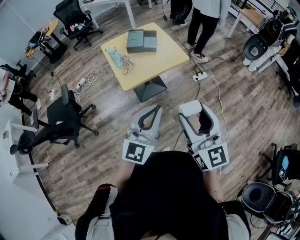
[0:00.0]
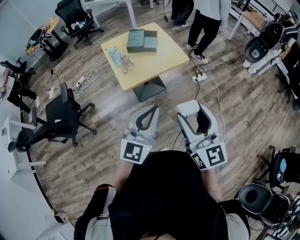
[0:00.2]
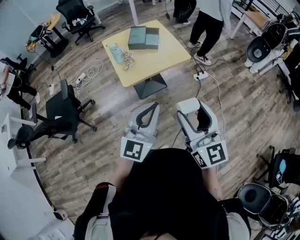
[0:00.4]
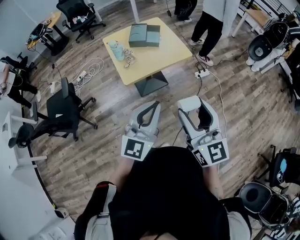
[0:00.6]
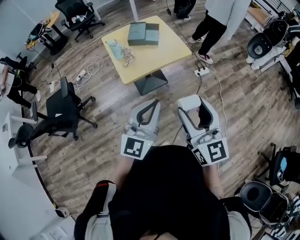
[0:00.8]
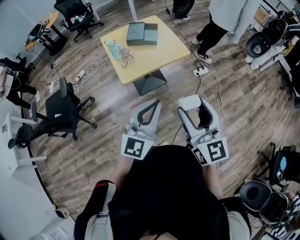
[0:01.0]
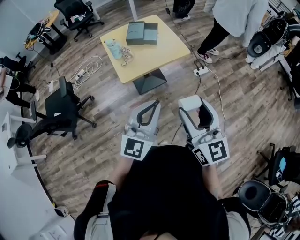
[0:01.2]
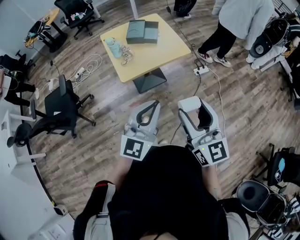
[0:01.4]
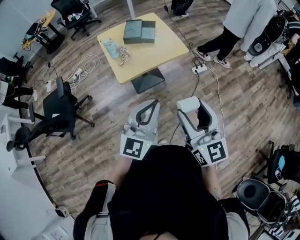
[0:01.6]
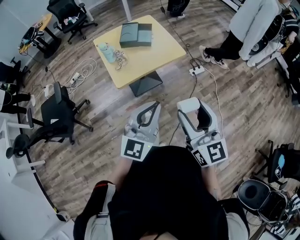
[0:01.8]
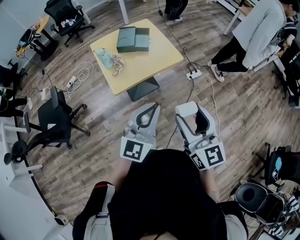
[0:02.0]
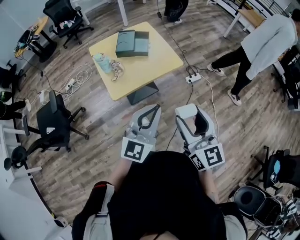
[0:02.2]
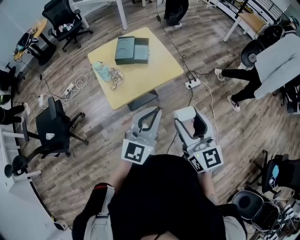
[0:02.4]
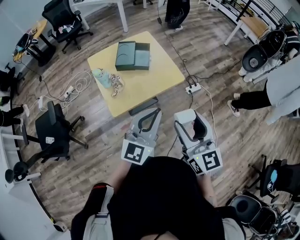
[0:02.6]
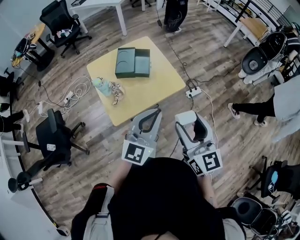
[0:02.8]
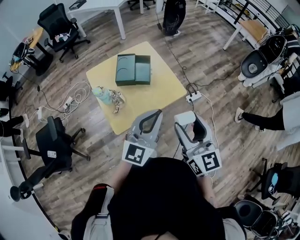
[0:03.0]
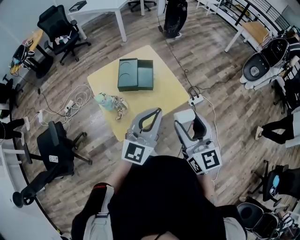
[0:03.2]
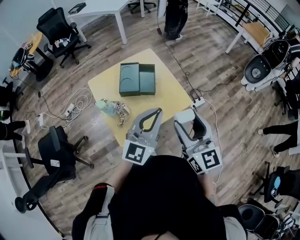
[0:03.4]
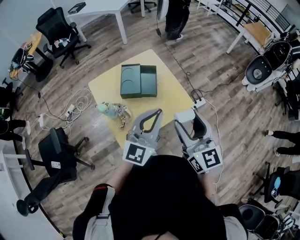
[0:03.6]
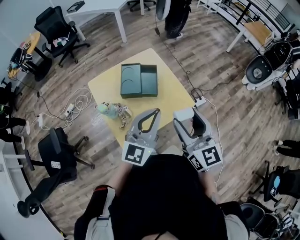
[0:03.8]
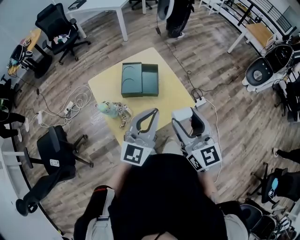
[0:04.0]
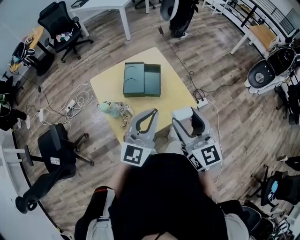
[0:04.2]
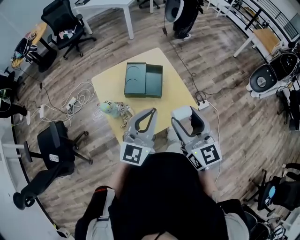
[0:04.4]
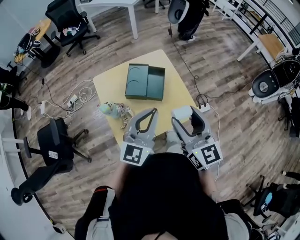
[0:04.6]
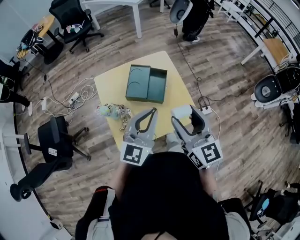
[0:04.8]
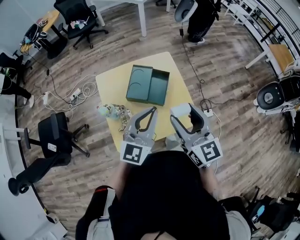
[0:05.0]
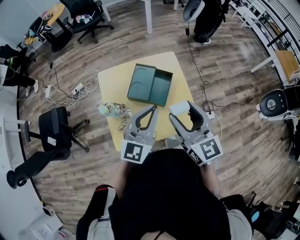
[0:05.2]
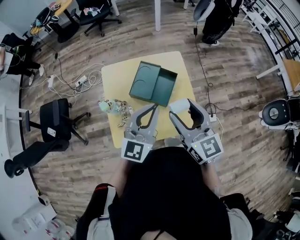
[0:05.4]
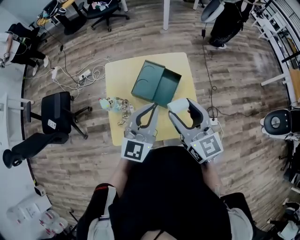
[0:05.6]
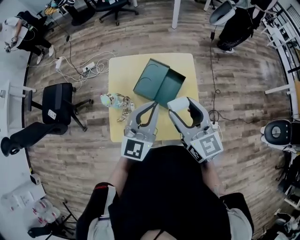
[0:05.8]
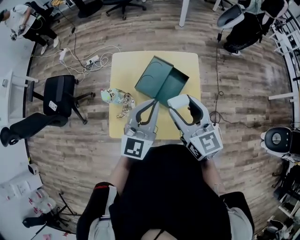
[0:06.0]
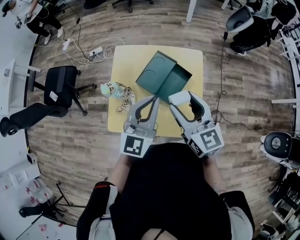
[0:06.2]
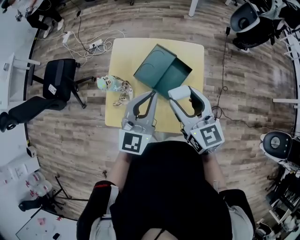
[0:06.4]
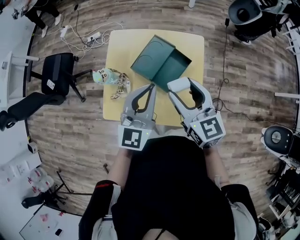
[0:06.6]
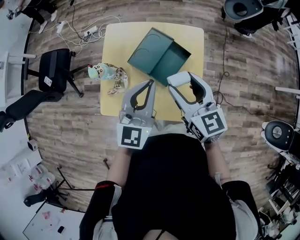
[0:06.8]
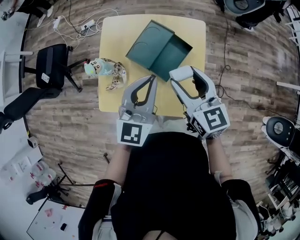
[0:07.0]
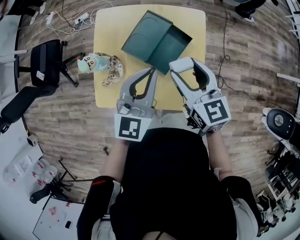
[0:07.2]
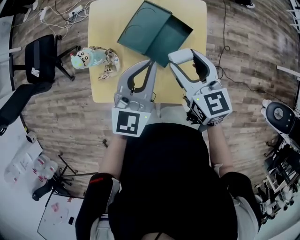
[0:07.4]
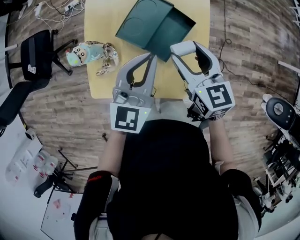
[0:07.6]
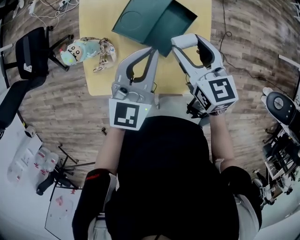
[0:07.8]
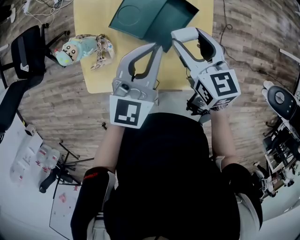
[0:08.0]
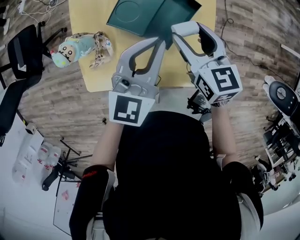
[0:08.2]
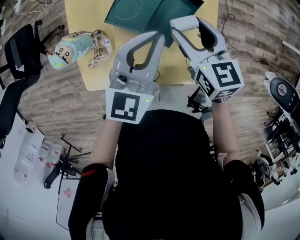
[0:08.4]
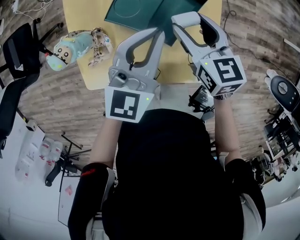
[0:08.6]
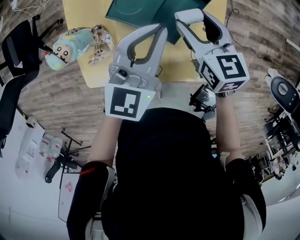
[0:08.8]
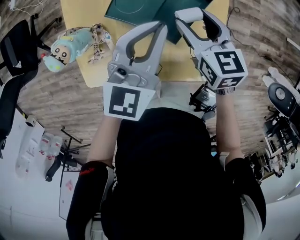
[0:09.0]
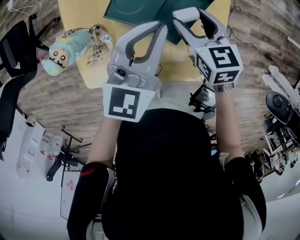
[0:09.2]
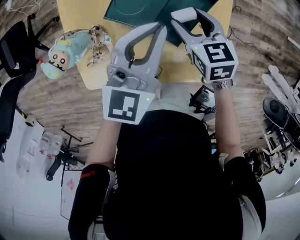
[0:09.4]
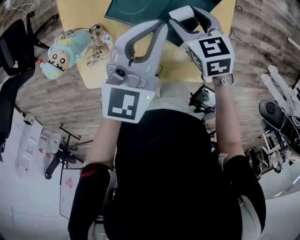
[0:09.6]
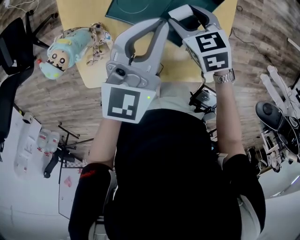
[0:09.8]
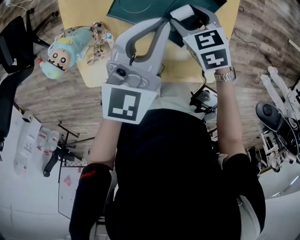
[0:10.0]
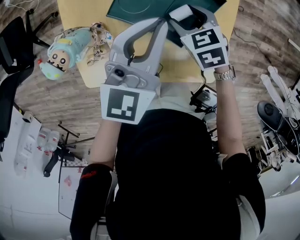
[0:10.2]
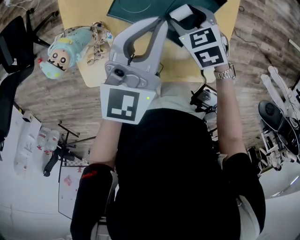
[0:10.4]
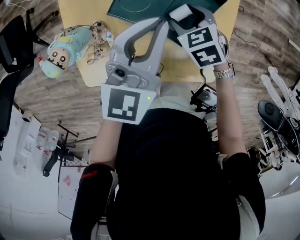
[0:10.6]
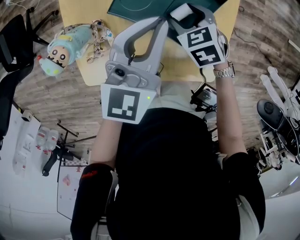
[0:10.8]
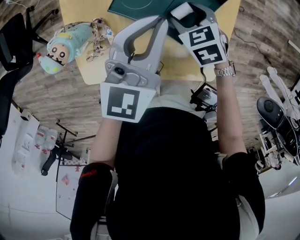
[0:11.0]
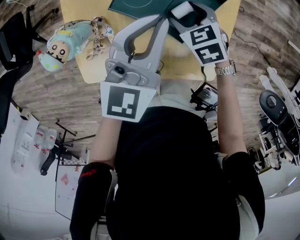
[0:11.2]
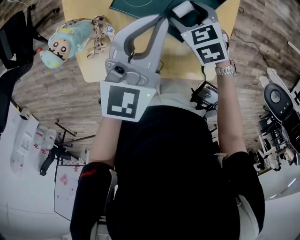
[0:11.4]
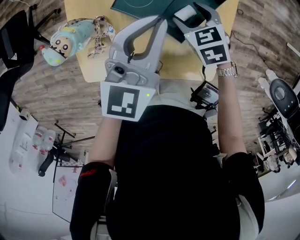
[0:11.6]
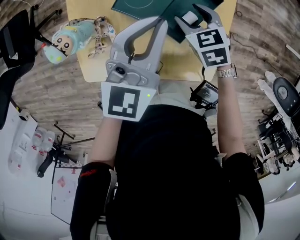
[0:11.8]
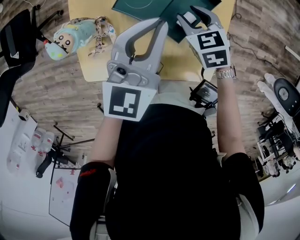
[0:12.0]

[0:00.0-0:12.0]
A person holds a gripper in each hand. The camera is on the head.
0:00.0 to 0:01.6: There are only small adjustments of the grippers.
0:01.6 to 0:03.0: Both grippers travel together forward, roughly 30 cm.
0:03.0 to 0:04.4: The grippers both shift forward and to the left by approximately 15 cm.
0:04.4 to 0:06.0: The right gripper shifts by approximately 20 cm, and swivels approximately 30 degrees. Meanwhile the left gripper moves some 15 cm, and changes its angle by roughly 30 degrees.
0:06.0 to 0:07.6: The right gripper goes roughly 15 cm downward and forward. The left gripper moves downward and forward, about 10 cm.
0:07.6 to 0:09.0: The grippers both shift downward and forward by some 10 cm.
0:09.0 to 0:10.4: The right gripper shifts some 10 cm downward, and changes its angle by about 30 degrees.
0:10.4 to 0:12.0: There are only small adjustments of the grippers.

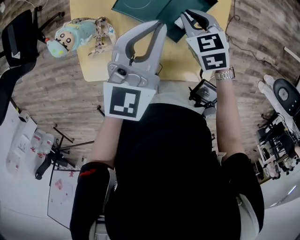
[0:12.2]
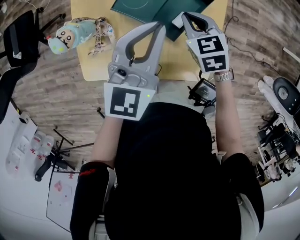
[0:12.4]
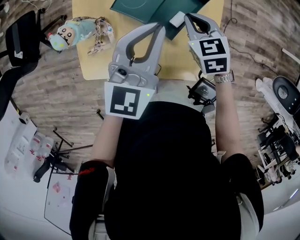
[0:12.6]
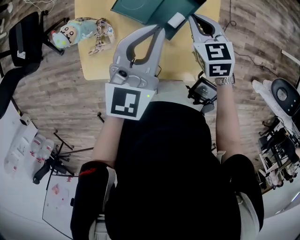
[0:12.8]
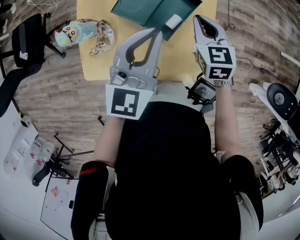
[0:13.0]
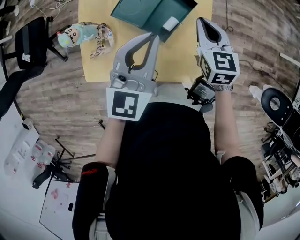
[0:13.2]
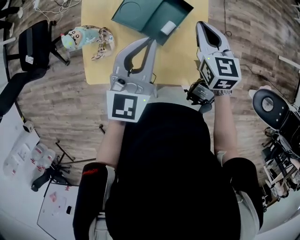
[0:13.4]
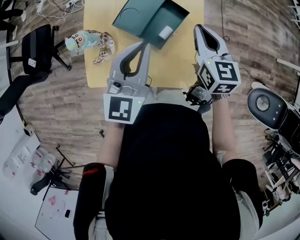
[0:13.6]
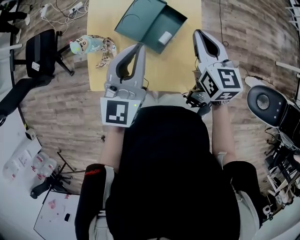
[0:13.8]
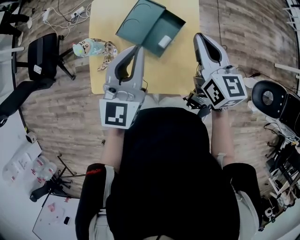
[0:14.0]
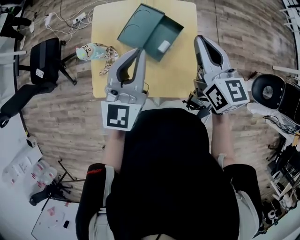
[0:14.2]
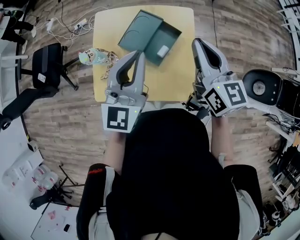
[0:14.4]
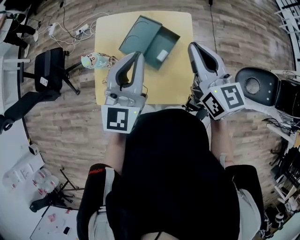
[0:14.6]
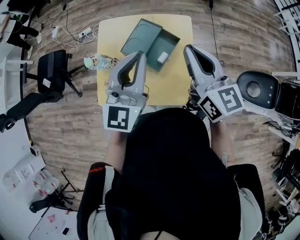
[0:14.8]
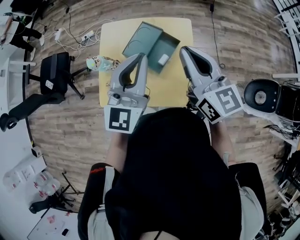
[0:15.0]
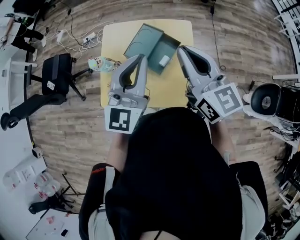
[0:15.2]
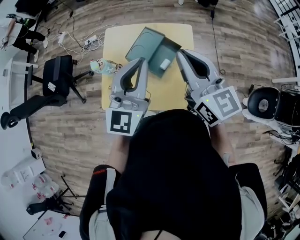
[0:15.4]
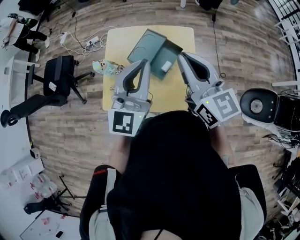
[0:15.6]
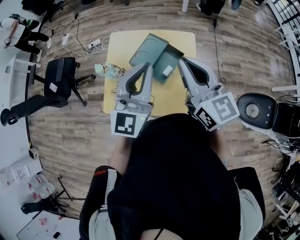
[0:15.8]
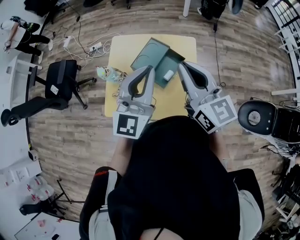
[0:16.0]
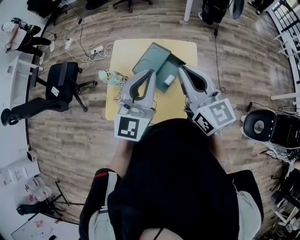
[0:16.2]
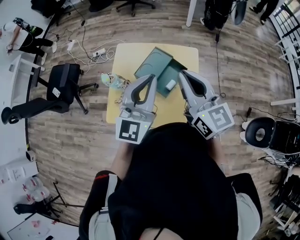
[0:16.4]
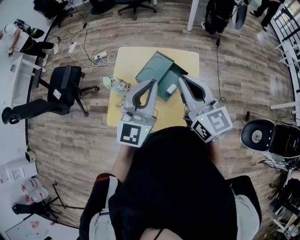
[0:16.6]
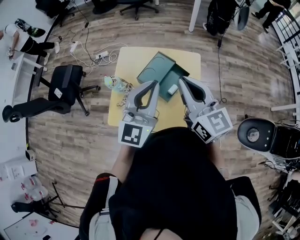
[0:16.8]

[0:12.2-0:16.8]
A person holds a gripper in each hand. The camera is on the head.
0:12.2 to 0:13.8: The right gripper travels upward and to the right by roughly 25 cm, and angles its fingers upward, by some 30 degrees. The left gripper travels upward and backward by approximately 15 cm.
0:13.8 to 0:15.2: The right gripper travels upward by some 15 cm, and rotates about 20 degrees, while the left gripper moves upward, roughly 10 cm.
0:15.2 to 0:16.8: The grippers make only small movements.

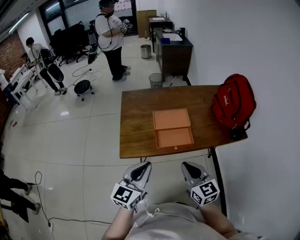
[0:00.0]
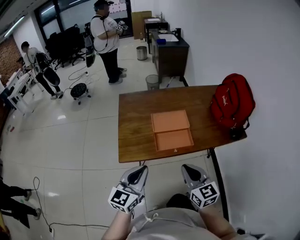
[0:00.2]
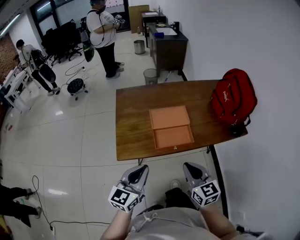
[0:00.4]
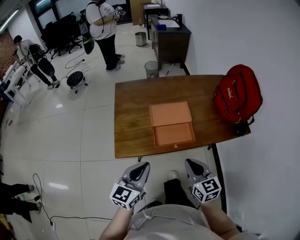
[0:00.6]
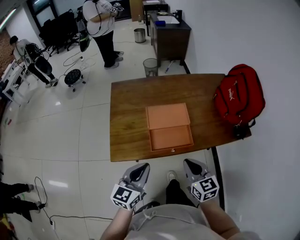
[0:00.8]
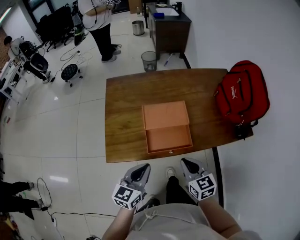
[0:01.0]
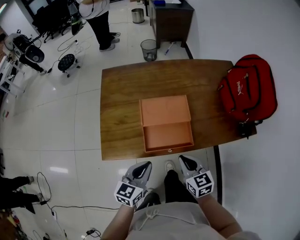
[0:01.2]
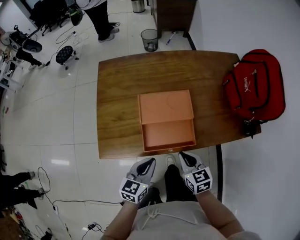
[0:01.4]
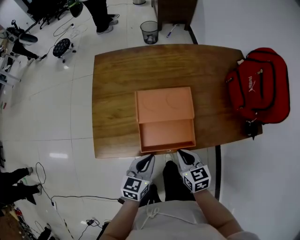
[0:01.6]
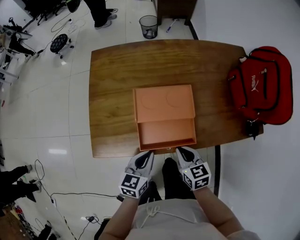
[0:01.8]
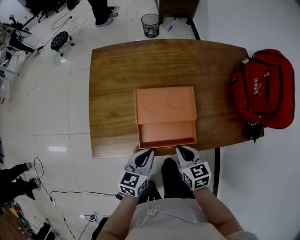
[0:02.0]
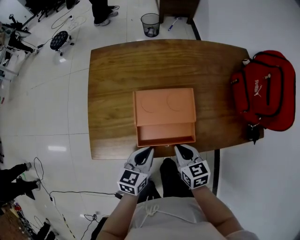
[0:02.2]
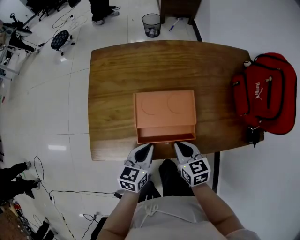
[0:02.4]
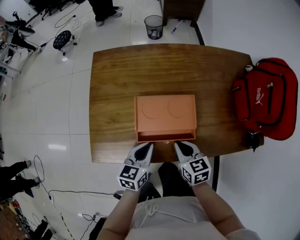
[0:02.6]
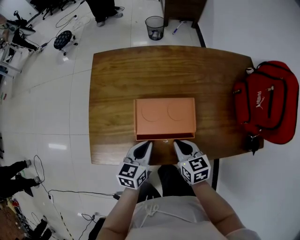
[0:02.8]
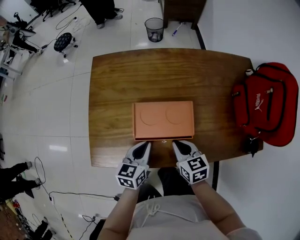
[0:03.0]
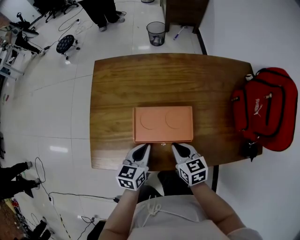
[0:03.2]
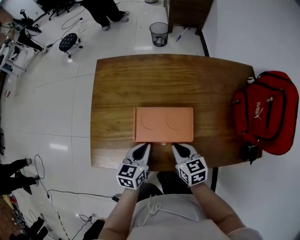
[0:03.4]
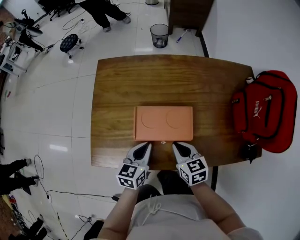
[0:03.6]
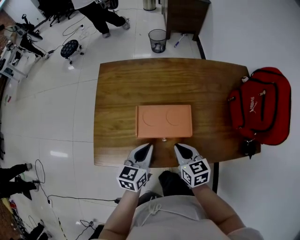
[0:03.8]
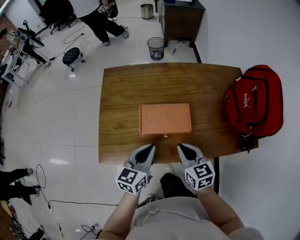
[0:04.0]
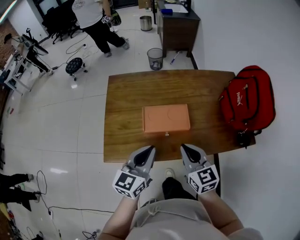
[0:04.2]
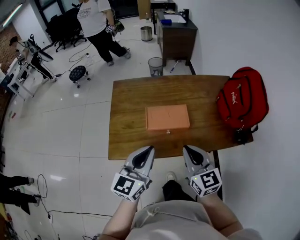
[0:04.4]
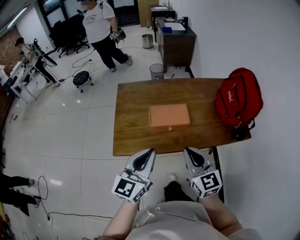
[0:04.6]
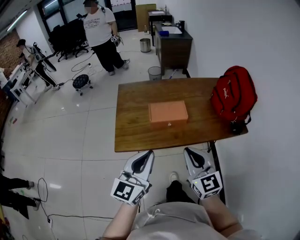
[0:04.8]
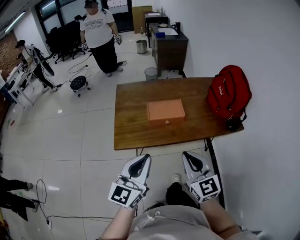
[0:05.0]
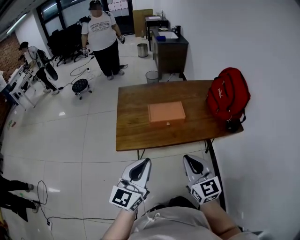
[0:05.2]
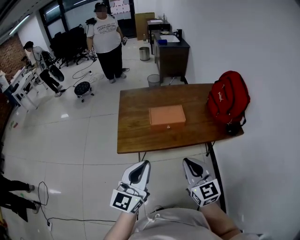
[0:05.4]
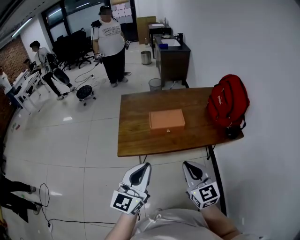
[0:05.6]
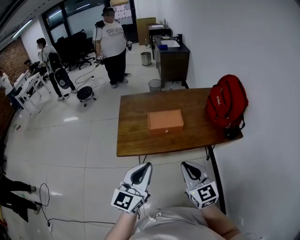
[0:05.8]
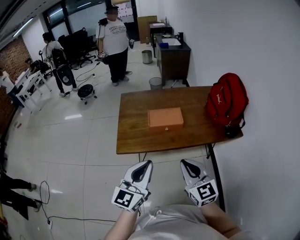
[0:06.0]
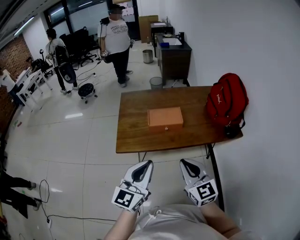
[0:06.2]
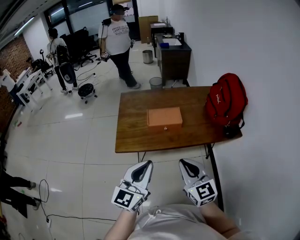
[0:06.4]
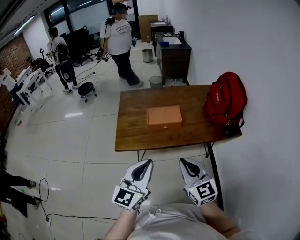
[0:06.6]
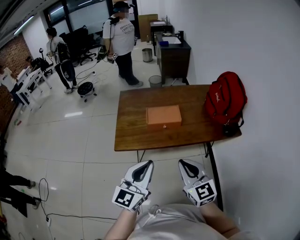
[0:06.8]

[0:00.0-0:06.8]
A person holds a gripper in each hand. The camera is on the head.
0:00.0 to 0:01.4: Both grippers travel together downward and forward, roughly 25 cm. The right gripper swivels about 20 degrees, while the left gripper turns by approximately 30 degrees.
0:01.4 to 0:02.8: Both grippers move forward, roughly 10 cm.
0:02.8 to 0:04.0: Both grippers travel together upward, about 10 cm.
0:04.0 to 0:05.4: The grippers both shift backward and upward by some 30 cm. The right gripper rotates roughly 30 degrees; the left gripper rotates approximately 30 degrees.
0:05.4 to 0:06.8: The left gripper goes approximately 5 cm to the right.
